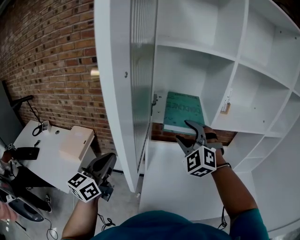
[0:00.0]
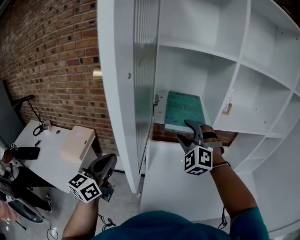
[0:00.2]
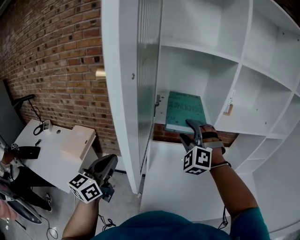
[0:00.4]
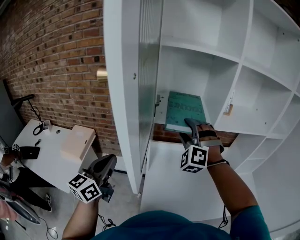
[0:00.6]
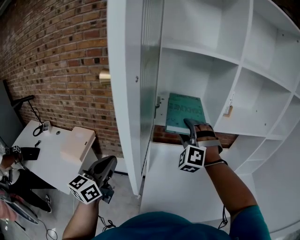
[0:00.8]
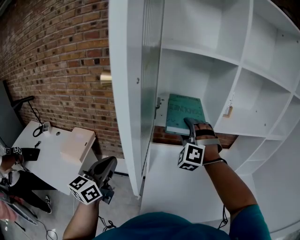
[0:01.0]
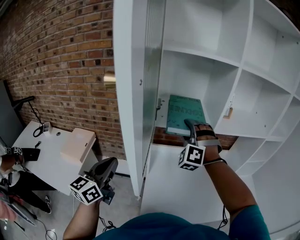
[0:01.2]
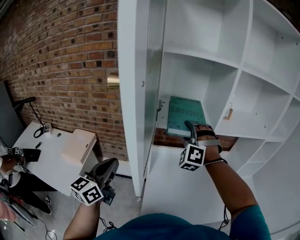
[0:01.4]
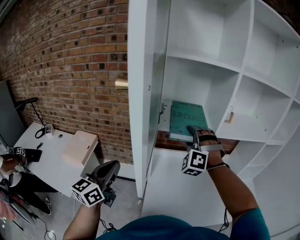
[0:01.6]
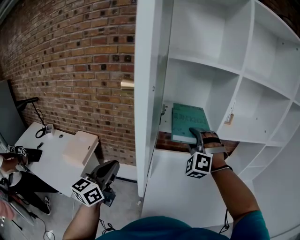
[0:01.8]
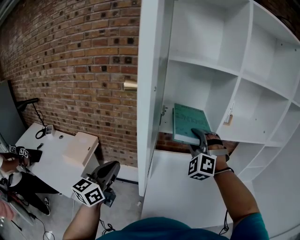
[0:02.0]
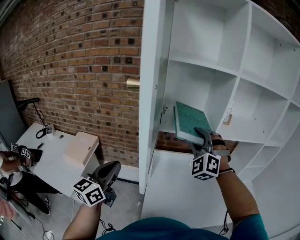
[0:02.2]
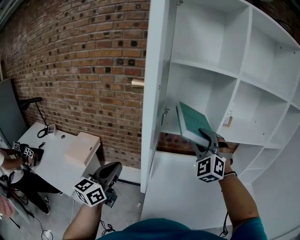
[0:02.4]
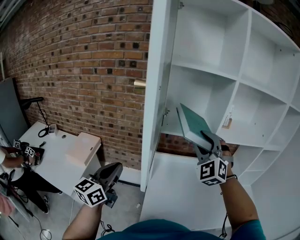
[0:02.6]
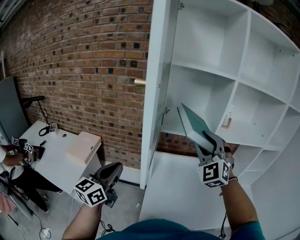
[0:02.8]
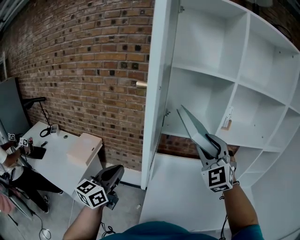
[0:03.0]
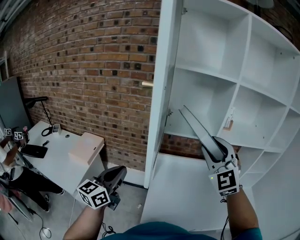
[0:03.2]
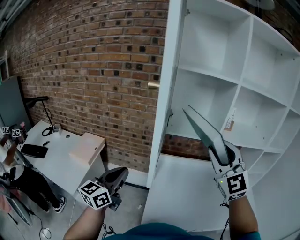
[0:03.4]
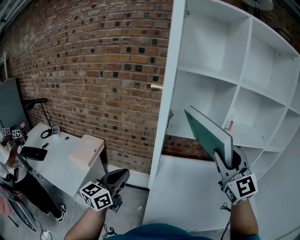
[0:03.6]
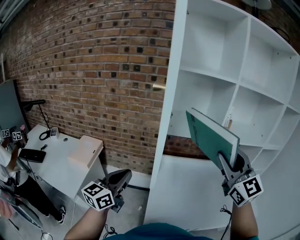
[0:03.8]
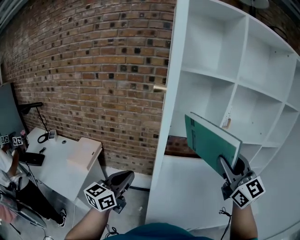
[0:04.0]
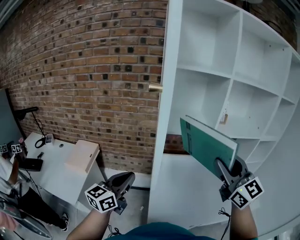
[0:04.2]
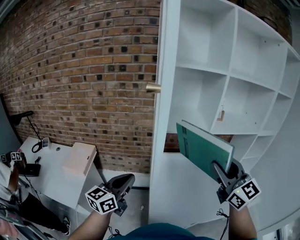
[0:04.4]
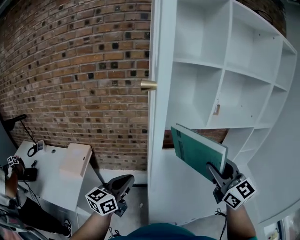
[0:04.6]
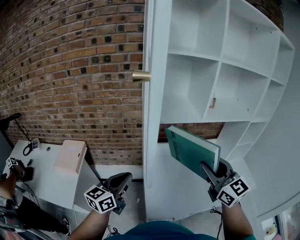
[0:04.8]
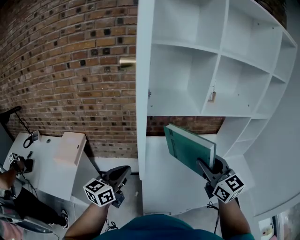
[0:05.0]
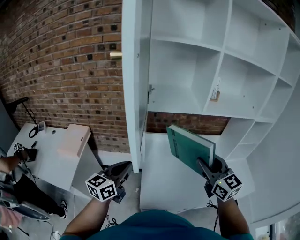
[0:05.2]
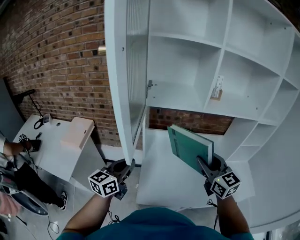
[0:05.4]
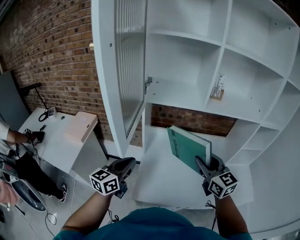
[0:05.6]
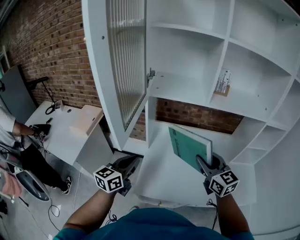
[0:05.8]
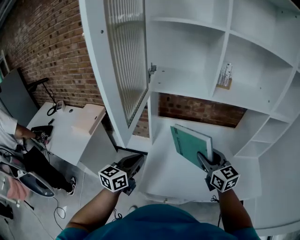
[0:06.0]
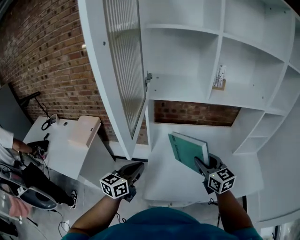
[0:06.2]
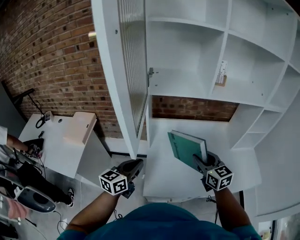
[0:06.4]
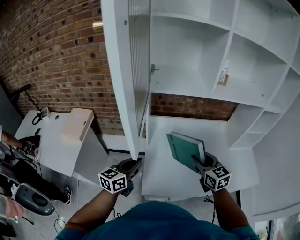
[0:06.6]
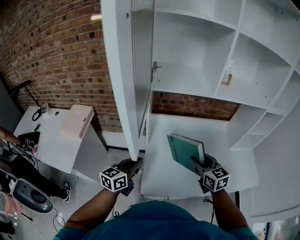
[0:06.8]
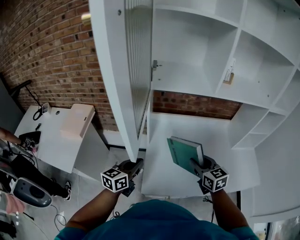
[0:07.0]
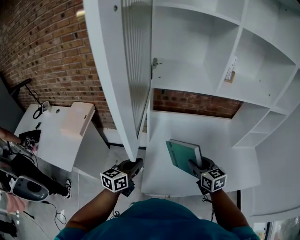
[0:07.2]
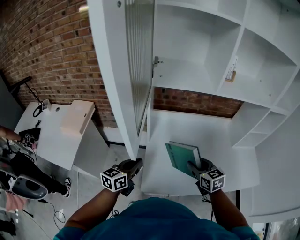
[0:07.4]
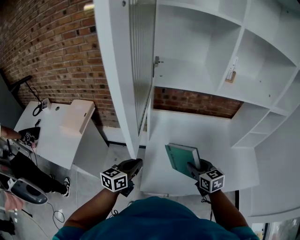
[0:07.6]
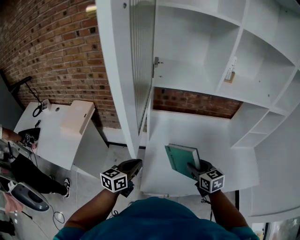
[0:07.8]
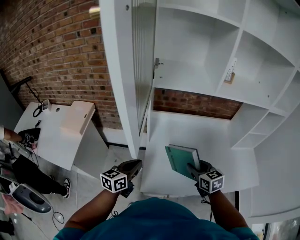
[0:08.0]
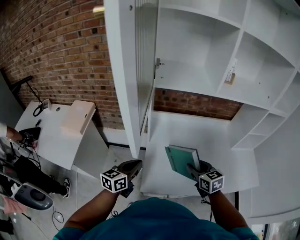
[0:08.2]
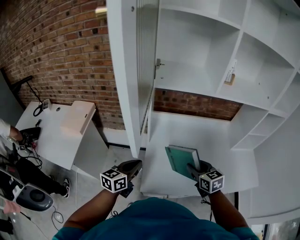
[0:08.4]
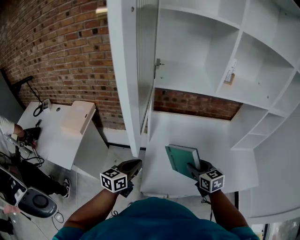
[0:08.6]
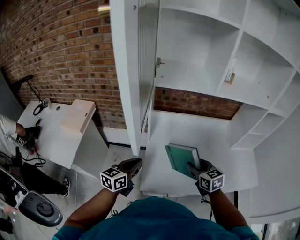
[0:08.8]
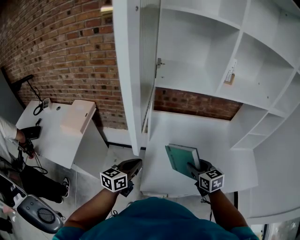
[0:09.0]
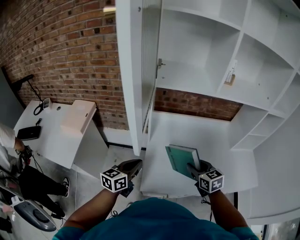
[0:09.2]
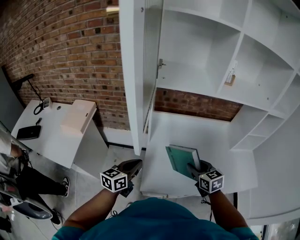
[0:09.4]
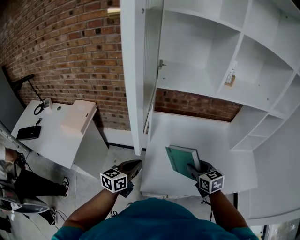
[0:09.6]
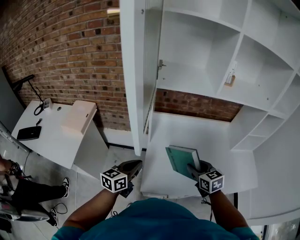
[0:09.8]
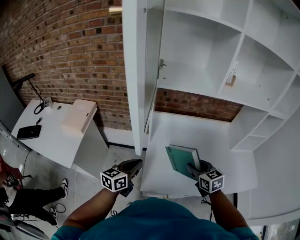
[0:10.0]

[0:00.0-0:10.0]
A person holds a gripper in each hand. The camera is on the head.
0:00.0 to 0:01.4: The right gripper heads forward, covering roughly 5 cm, and swivels approximately 20 degrees.
0:01.4 to 0:02.8: The right gripper moves backward and upward, roughly 15 cm, and swivels about 30 degrees.
0:02.8 to 0:04.2: The right gripper shifts roughly 15 cm backward and to the right, and rolls clockwise, seen from behind, by about 50 degrees.
0:04.2 to 0:05.8: The left gripper heads to the right and downward, covering roughly 15 cm, while the right gripper shifts roughly 20 cm downward, and changes its angle by approximately 20 degrees.
0:05.8 to 0:07.2: The left gripper is displaced downward by about 10 cm. The right gripper heads downward, covering some 15 cm, and rotates roughly 20 degrees.
0:07.2 to 0:08.6: The grippers stay close to where they were, moving slightly.
0:08.6 to 0:10.0: Neither gripper changes place.

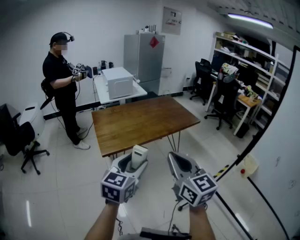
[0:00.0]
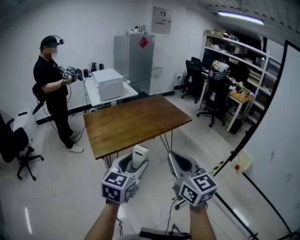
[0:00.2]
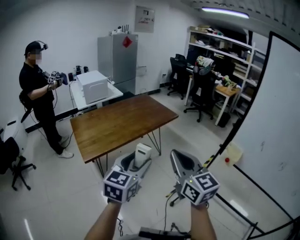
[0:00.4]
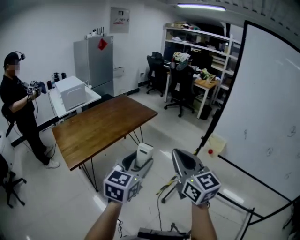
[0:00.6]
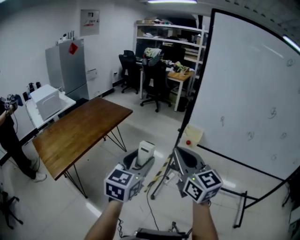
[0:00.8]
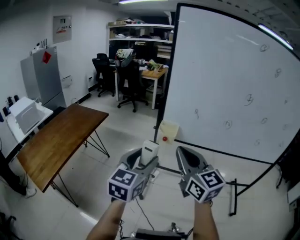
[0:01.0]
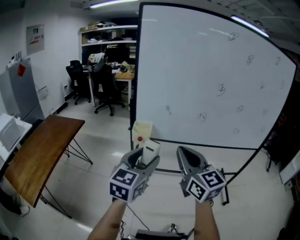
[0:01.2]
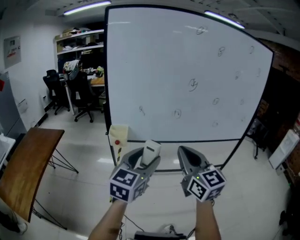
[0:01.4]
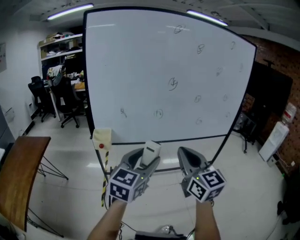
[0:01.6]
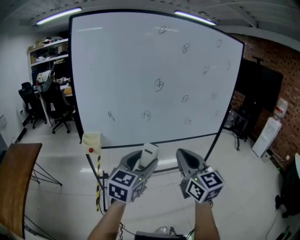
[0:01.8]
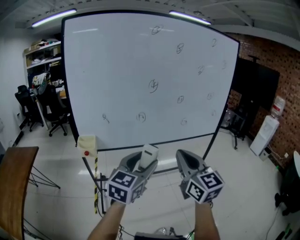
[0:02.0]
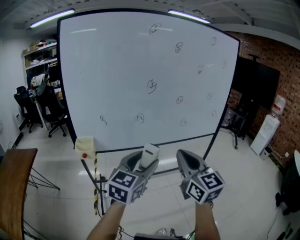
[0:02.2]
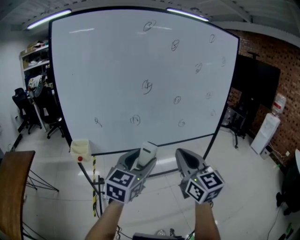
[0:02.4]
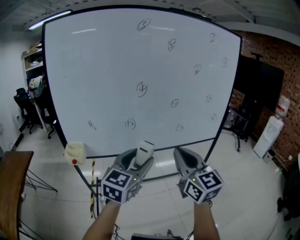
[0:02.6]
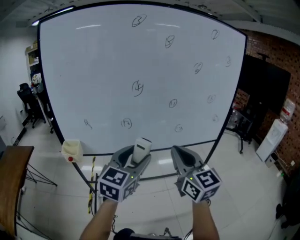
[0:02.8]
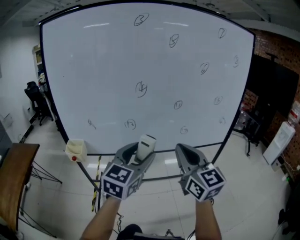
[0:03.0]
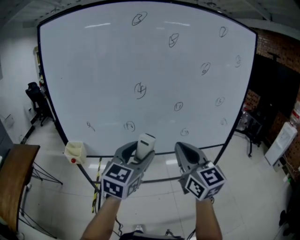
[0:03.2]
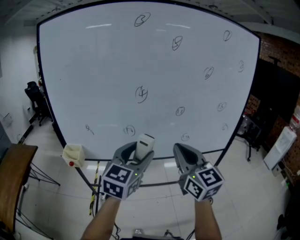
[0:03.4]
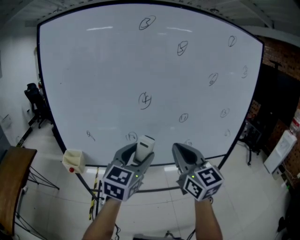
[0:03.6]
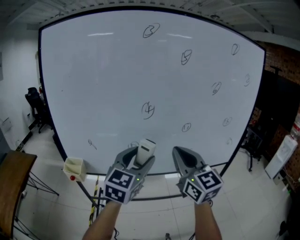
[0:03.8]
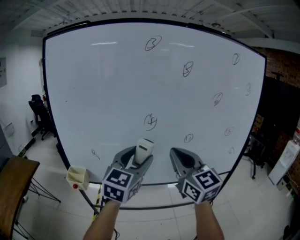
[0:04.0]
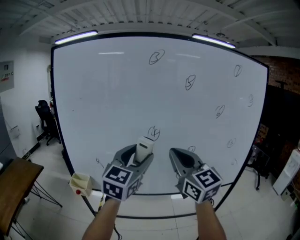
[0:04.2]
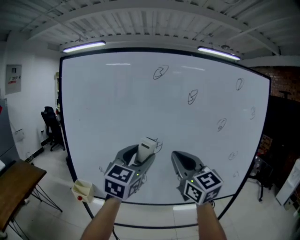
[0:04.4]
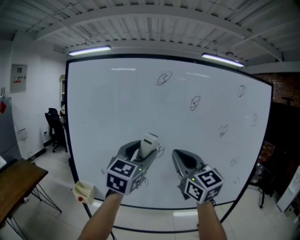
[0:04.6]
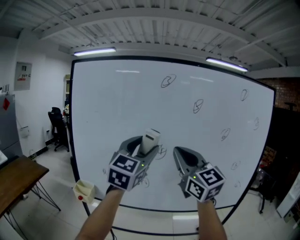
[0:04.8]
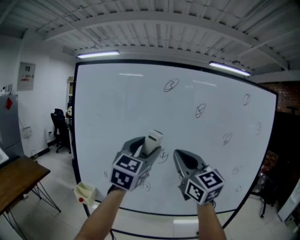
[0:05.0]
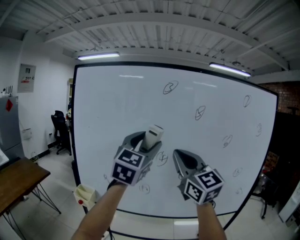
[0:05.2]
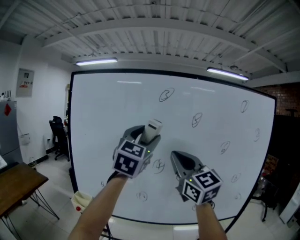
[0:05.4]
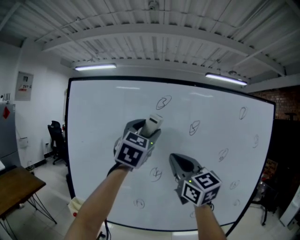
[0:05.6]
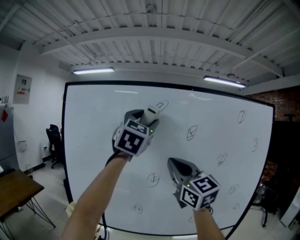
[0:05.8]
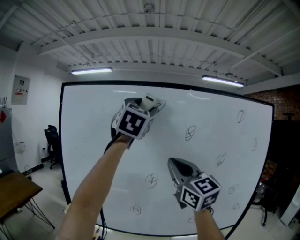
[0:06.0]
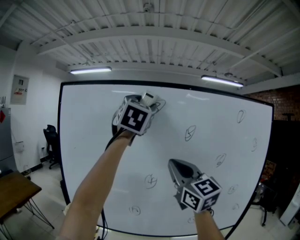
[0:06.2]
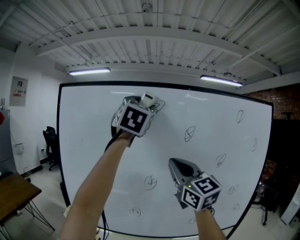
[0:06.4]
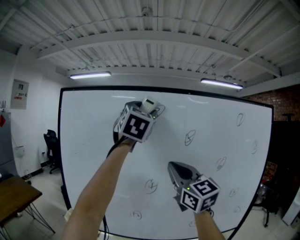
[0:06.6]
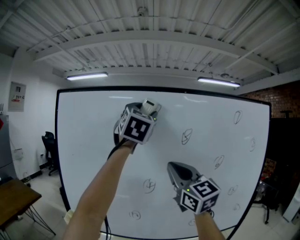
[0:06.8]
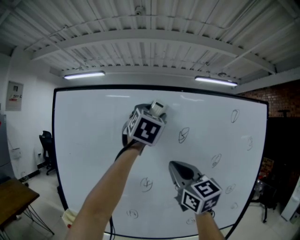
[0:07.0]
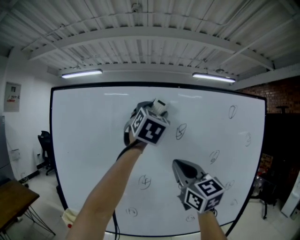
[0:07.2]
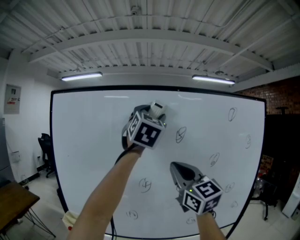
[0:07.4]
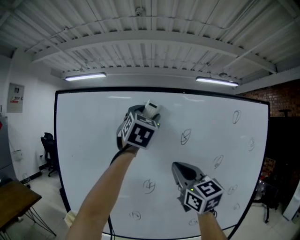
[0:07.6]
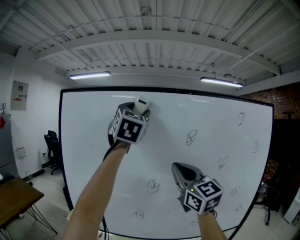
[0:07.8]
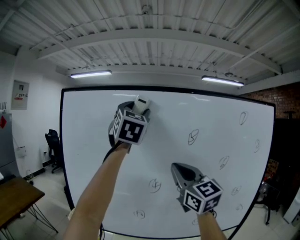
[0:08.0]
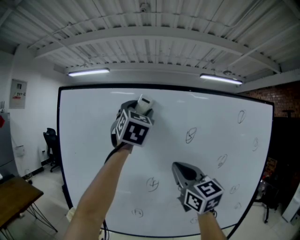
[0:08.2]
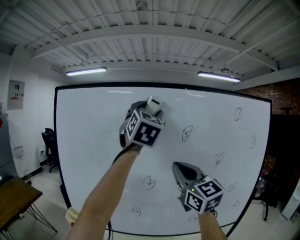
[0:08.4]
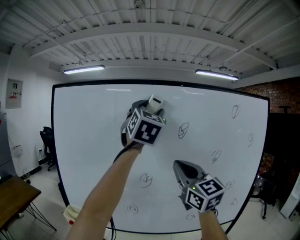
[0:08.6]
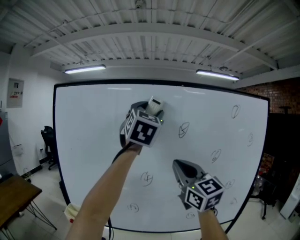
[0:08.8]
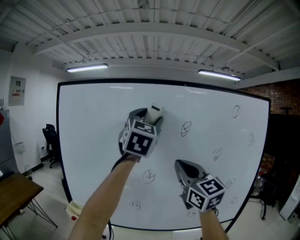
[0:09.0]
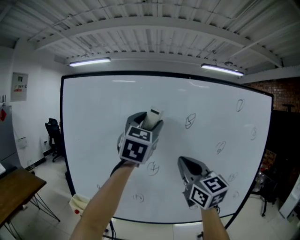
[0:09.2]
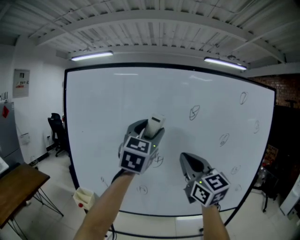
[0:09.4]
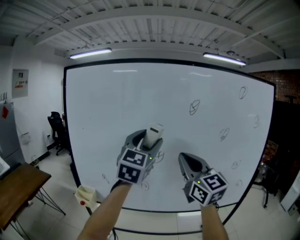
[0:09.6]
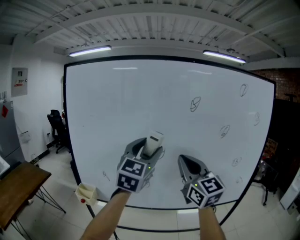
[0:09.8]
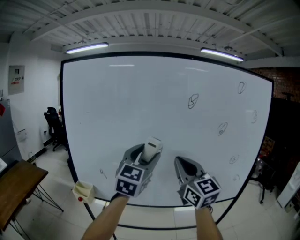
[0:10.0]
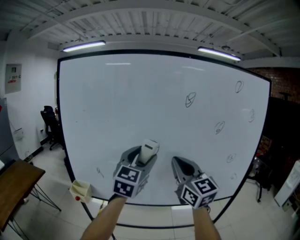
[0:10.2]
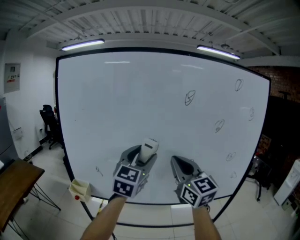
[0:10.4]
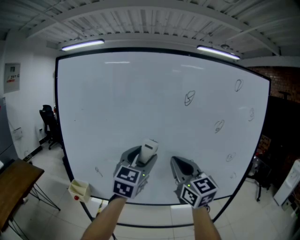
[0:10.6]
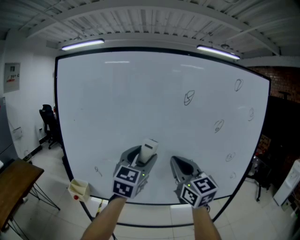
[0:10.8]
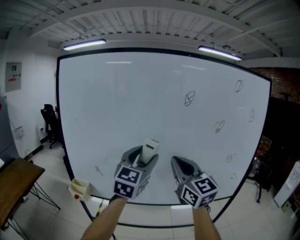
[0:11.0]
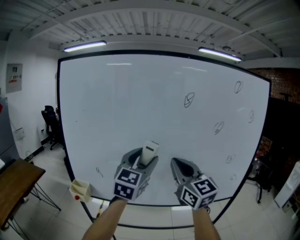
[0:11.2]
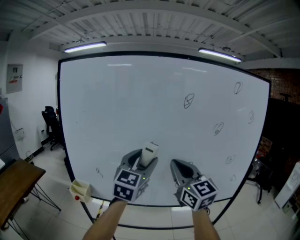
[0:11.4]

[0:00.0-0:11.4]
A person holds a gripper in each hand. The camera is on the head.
0:00.0 to 0:01.4: The pair of grippers is taken approximately 50 cm. The left gripper swivels some 70 degrees. Meanwhile the right gripper changes its angle by about 70 degrees.
0:01.4 to 0:02.8: The two grippers go about 25 cm to the right and forward.
0:02.8 to 0:04.2: The grippers both shift forward and upward by approximately 20 cm.
0:04.2 to 0:05.6: The left gripper shifts roughly 25 cm upward, and changes its angle by some 20 degrees; the right gripper travels upward by approximately 10 cm.
0:05.6 to 0:07.2: The right gripper is displaced to the right by about 5 cm; the left gripper goes approximately 15 cm to the right and upward.
0:07.2 to 0:08.6: The left gripper moves some 10 cm to the left and comes back.
0:08.6 to 0:10.0: The right gripper heads downward, covering approximately 10 cm; the left gripper heads downward, covering approximately 25 cm, and changes its angle by approximately 20 degrees.
0:10.0 to 0:11.4: The grippers move only a little.

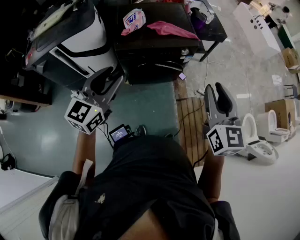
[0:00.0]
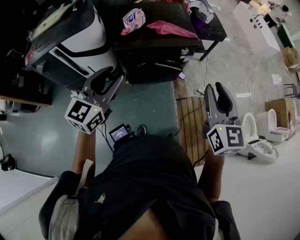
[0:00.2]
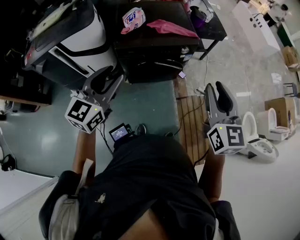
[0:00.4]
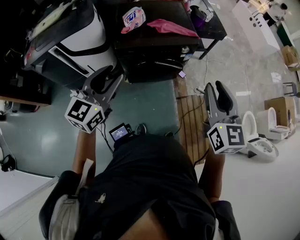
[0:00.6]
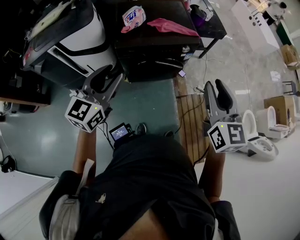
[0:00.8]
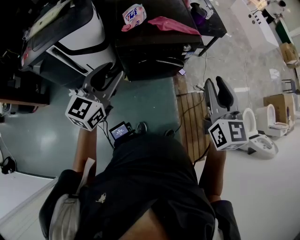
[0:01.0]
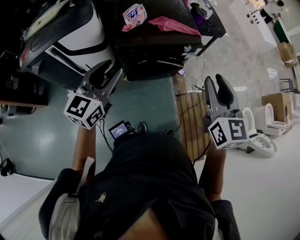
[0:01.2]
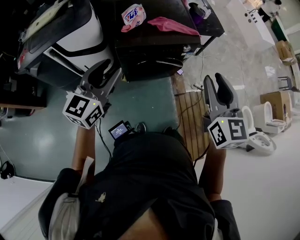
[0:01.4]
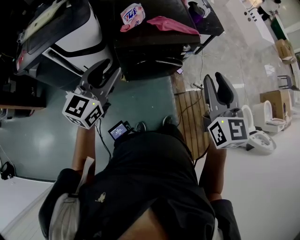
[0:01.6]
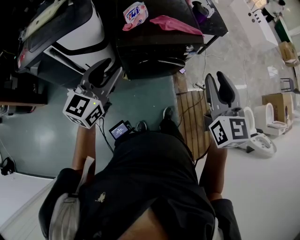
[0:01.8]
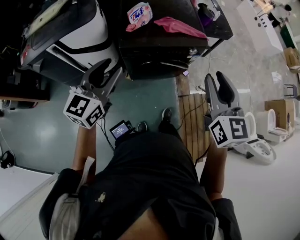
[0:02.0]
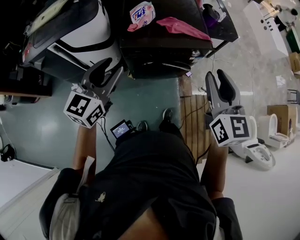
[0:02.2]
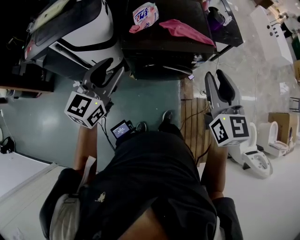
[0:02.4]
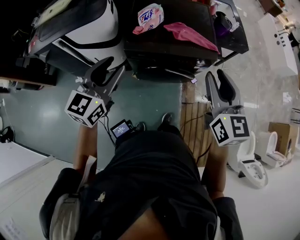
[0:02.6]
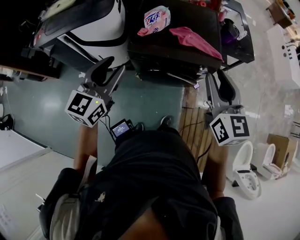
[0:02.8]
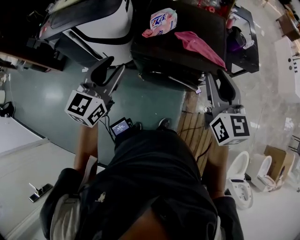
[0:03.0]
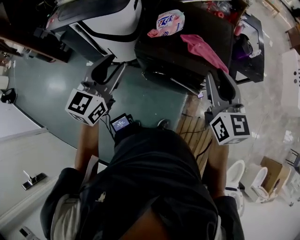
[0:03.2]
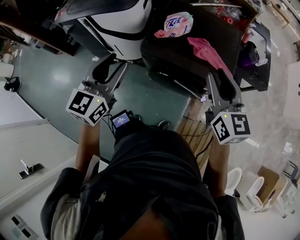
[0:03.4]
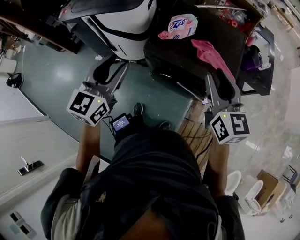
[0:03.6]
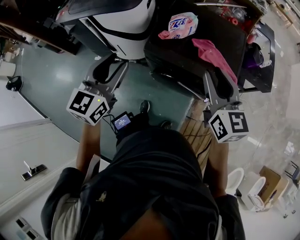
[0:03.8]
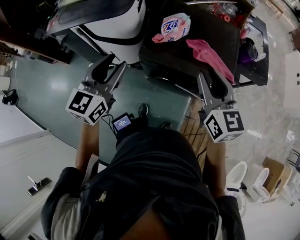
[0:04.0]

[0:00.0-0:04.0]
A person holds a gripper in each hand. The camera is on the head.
0:00.0 to 0:01.4: Both grippers travel together to the left, roughly 5 cm.
0:01.4 to 0:02.6: The left gripper travels forward by roughly 10 cm. The right gripper moves forward, about 15 cm.
0:02.6 to 0:04.0: The right gripper goes approximately 15 cm forward. The left gripper is displaced forward by approximately 5 cm.
